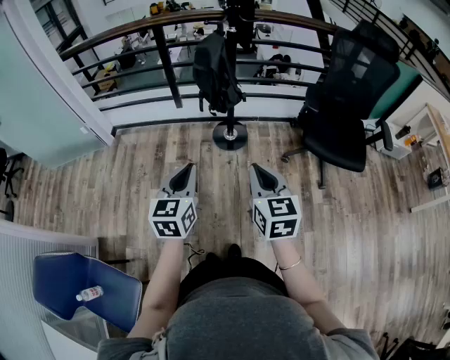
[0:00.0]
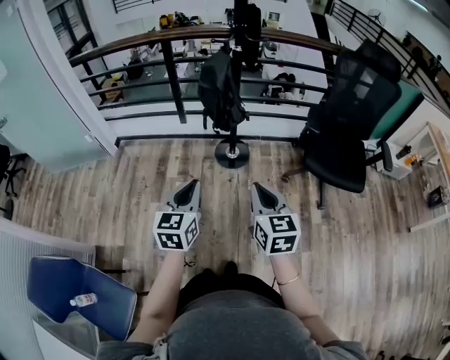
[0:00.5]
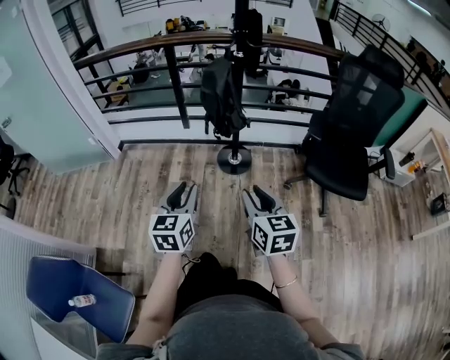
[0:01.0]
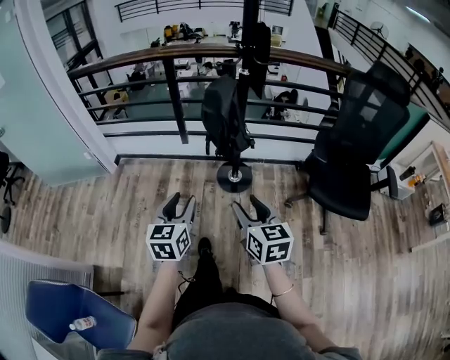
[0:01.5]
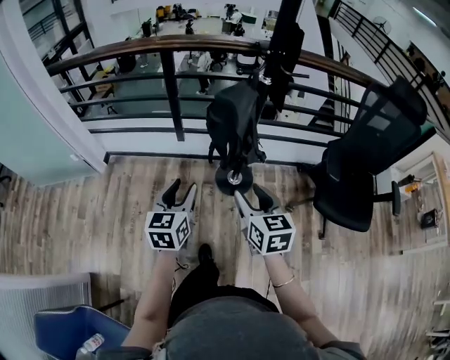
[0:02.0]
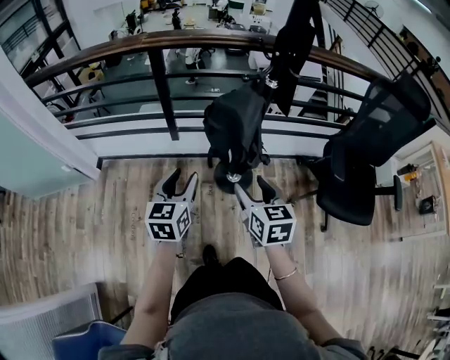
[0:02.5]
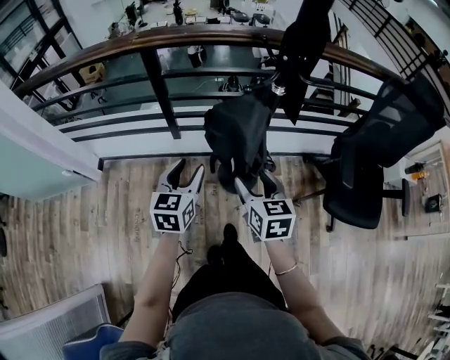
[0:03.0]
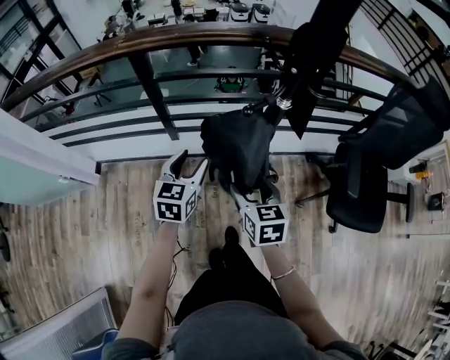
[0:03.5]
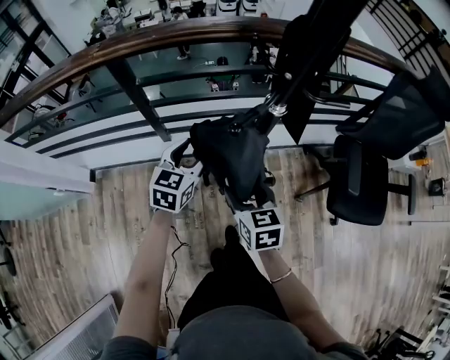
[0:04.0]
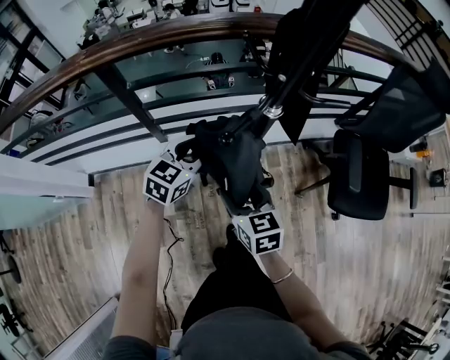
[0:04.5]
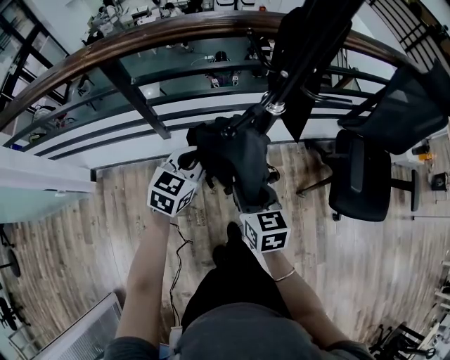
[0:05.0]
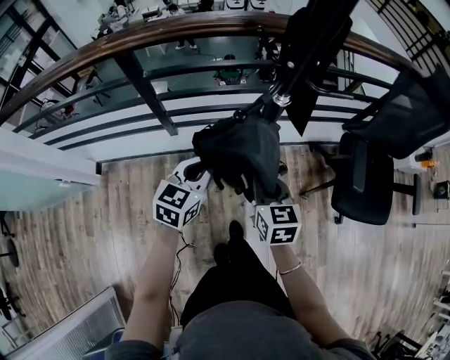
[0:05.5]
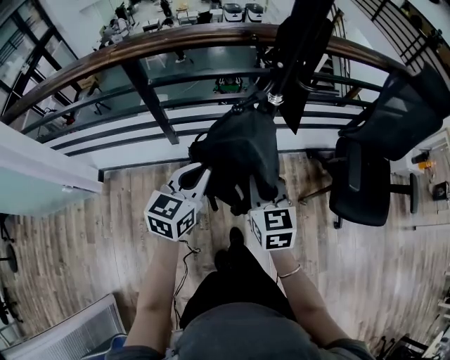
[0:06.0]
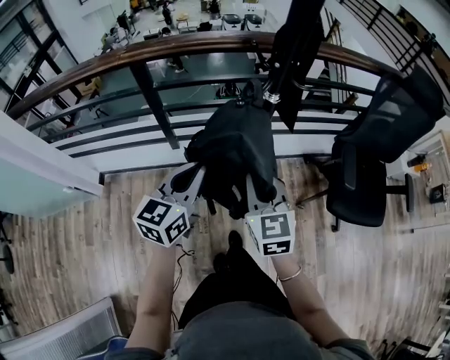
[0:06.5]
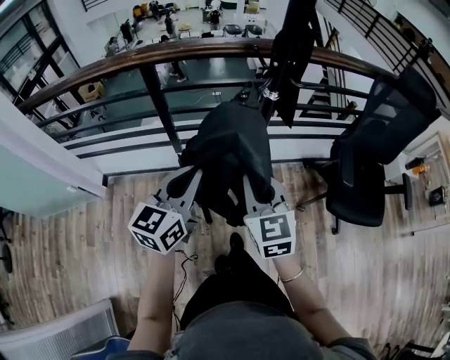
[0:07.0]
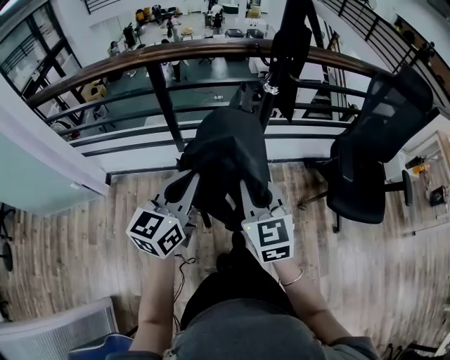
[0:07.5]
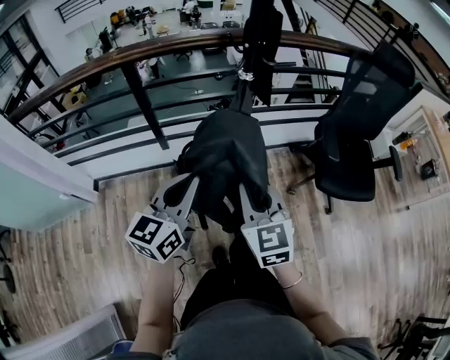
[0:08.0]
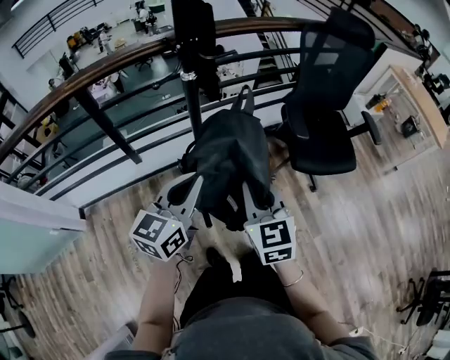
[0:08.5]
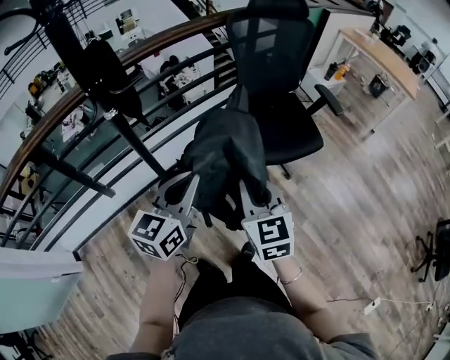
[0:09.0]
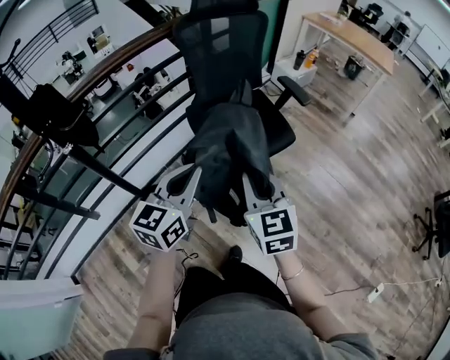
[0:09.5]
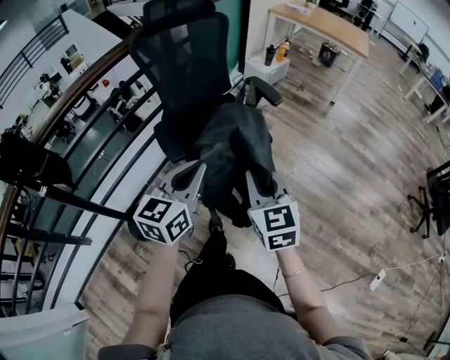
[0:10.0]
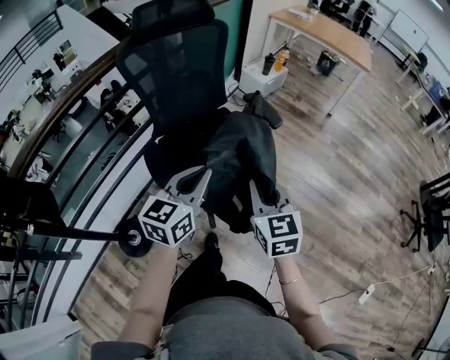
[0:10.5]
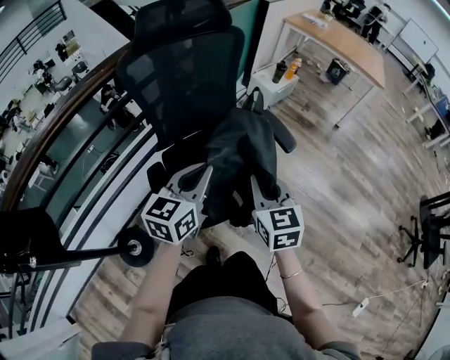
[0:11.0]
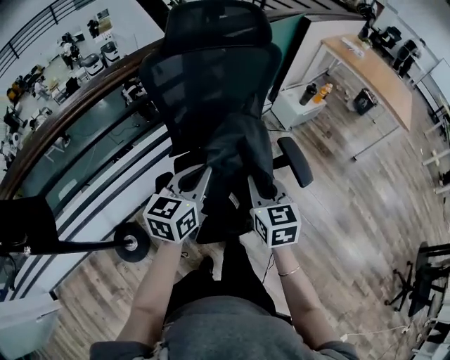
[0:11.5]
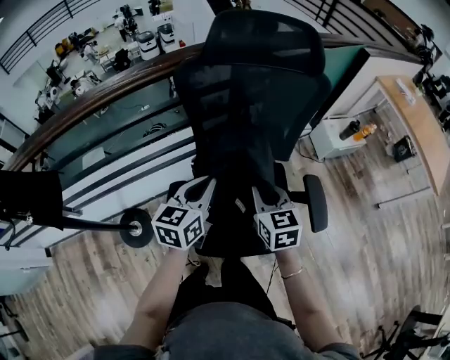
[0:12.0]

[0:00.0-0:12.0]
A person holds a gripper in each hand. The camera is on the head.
0:00.0 to 0:02.0: Both grippers move forward, roughly 30 cm. The right gripper opens up. Meanwhile the left gripper opens its fingers.
0:02.0 to 0:04.0: The grippers both shift forward by approximately 30 cm. The left gripper changes its angle by roughly 30 degrees.
0:04.0 to 0:06.0: The right gripper heads upward, covering roughly 5 cm, and closes its fingers. Meanwhile the left gripper travels backward and upward by about 10 cm, and closes its fingers.
0:06.0 to 0:08.0: The two grippers go some 20 cm backward and upward.
0:08.0 to 0:10.0: Both grippers are carried about 60 cm. The right gripper changes its angle by some 50 degrees. The left gripper turns by roughly 40 degrees.
0:10.0 to 0:12.0: The pair of grippers is taken roughly 40 cm. The right gripper swivels some 30 degrees, while the left gripper changes its angle by about 30 degrees.

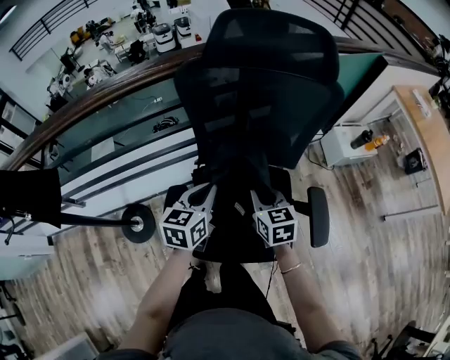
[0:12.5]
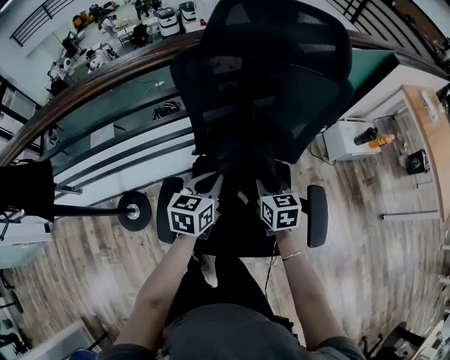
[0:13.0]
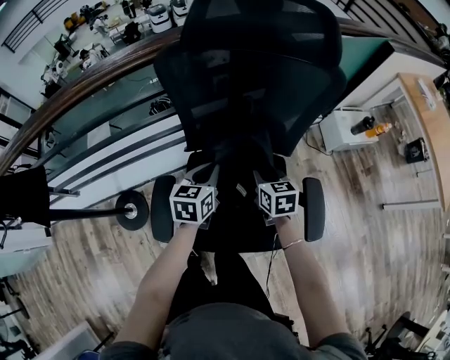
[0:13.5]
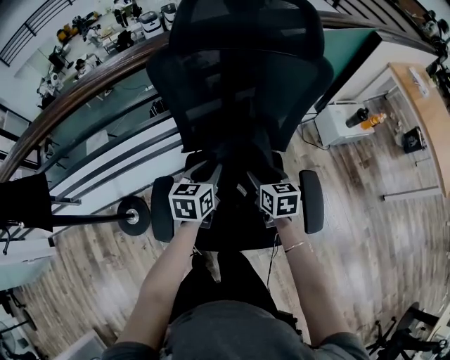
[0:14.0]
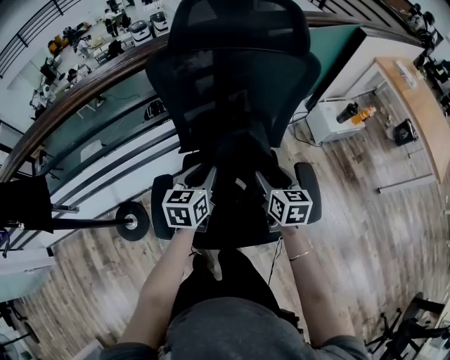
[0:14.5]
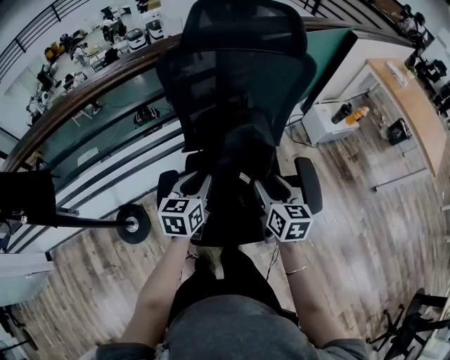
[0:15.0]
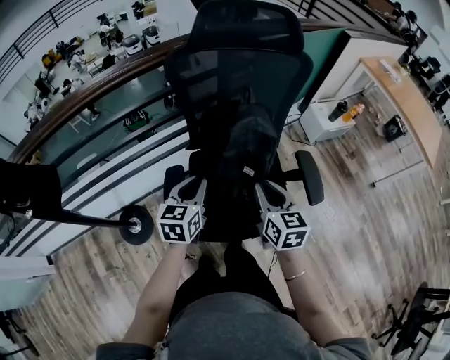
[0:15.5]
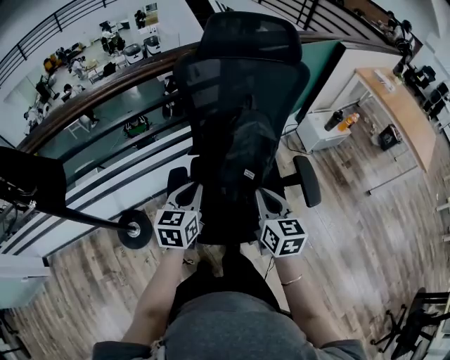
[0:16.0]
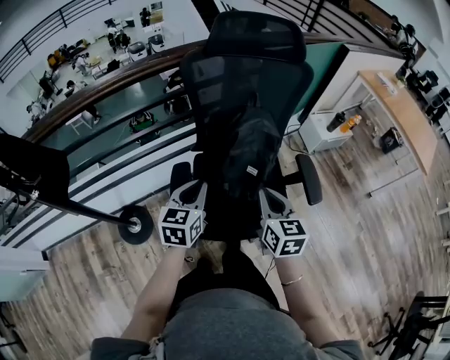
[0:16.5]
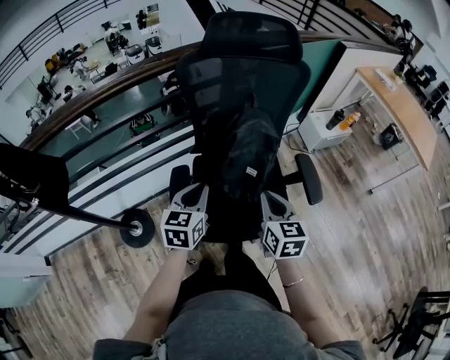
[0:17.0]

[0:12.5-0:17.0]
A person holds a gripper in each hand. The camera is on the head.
0:12.5 to 0:14.5: The right gripper is displaced to the right by some 10 cm, and opens its fingers.
0:14.5 to 0:17.0: The right gripper goes some 20 cm backward and upward, and closes, while the left gripper goes approximately 15 cm backward and to the left.

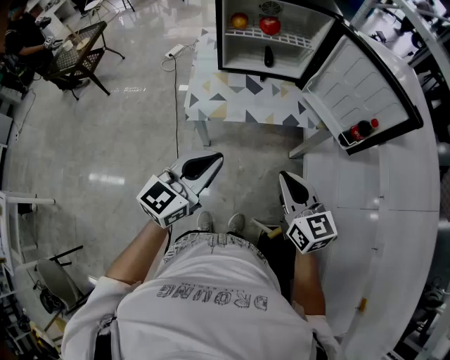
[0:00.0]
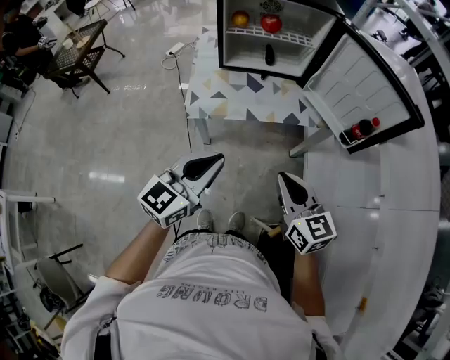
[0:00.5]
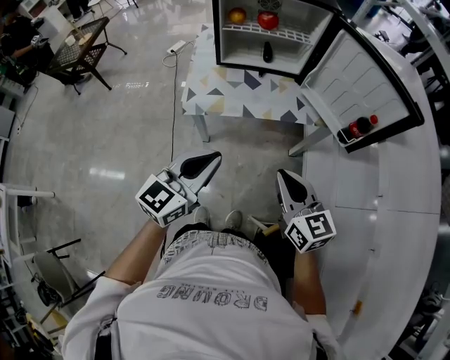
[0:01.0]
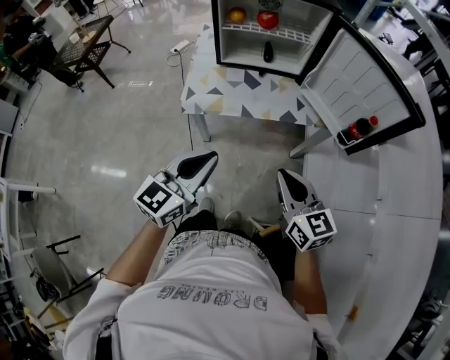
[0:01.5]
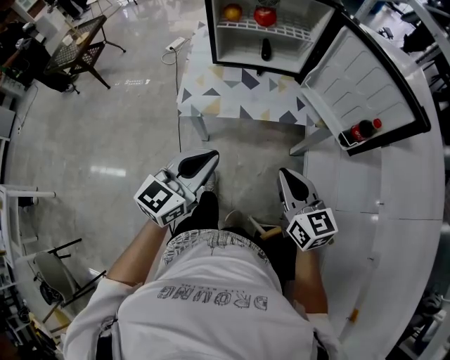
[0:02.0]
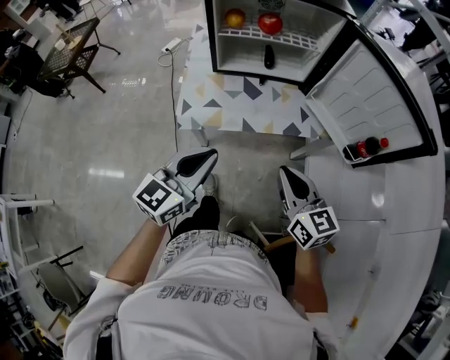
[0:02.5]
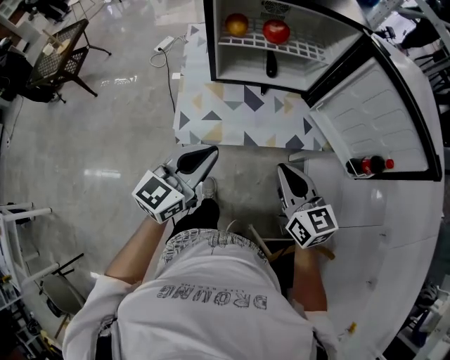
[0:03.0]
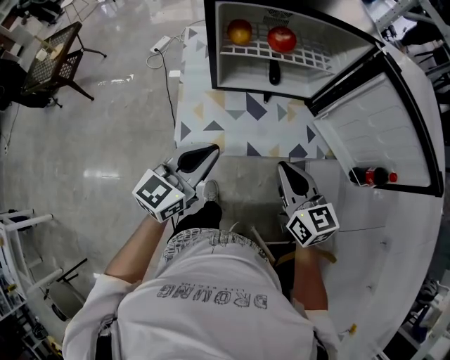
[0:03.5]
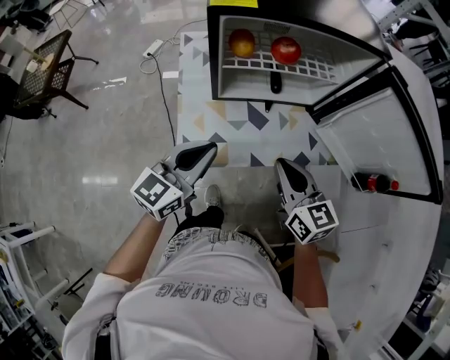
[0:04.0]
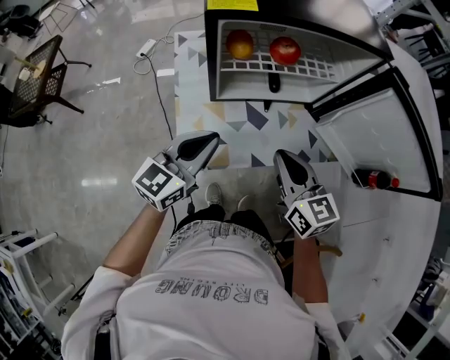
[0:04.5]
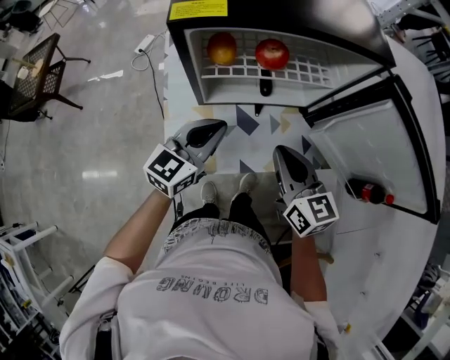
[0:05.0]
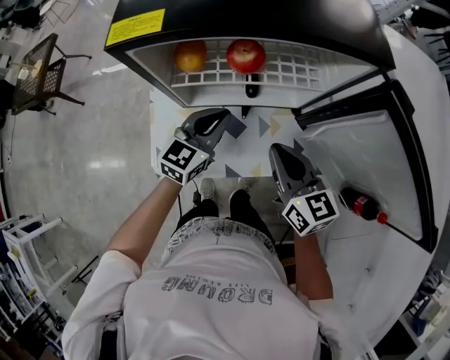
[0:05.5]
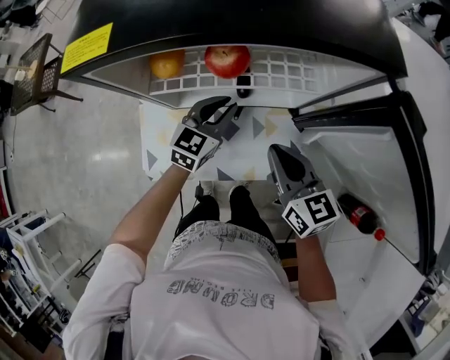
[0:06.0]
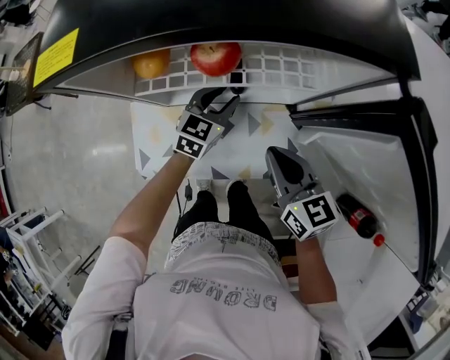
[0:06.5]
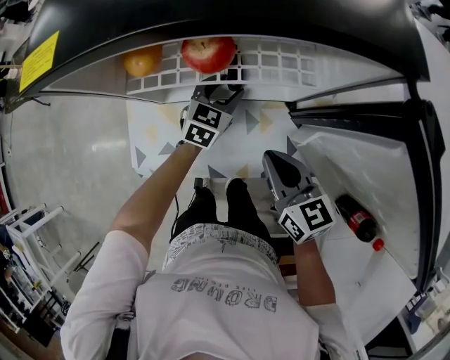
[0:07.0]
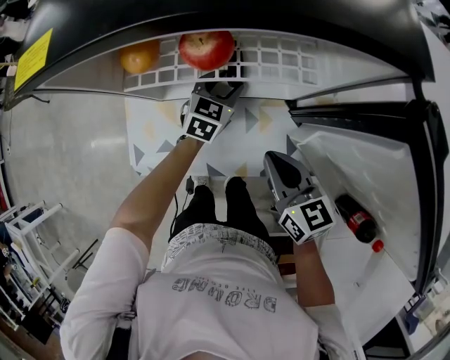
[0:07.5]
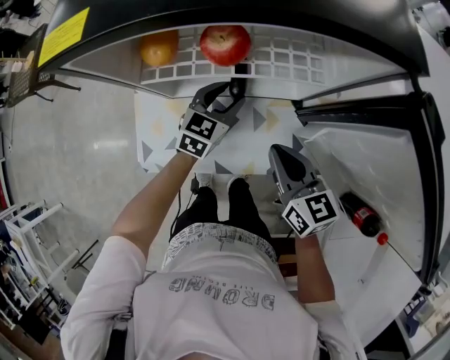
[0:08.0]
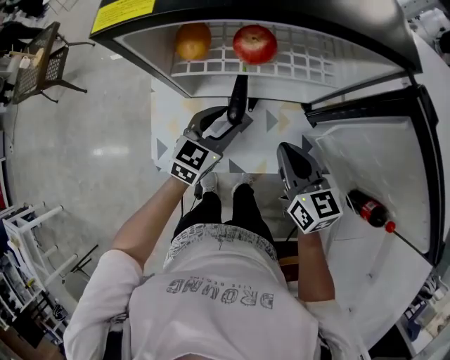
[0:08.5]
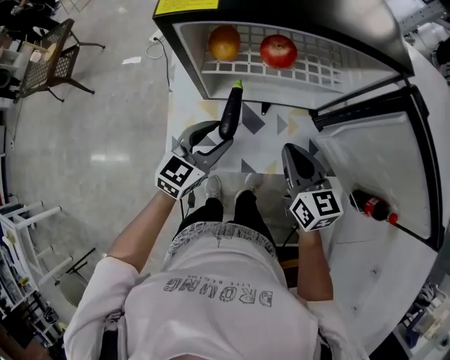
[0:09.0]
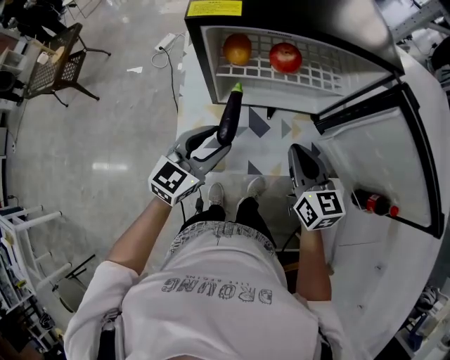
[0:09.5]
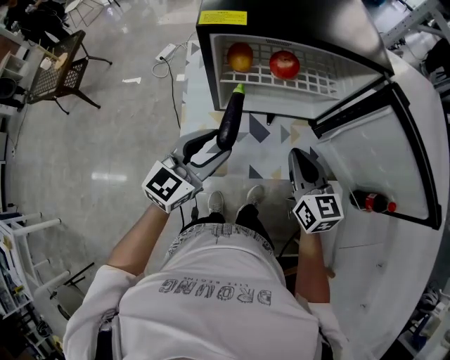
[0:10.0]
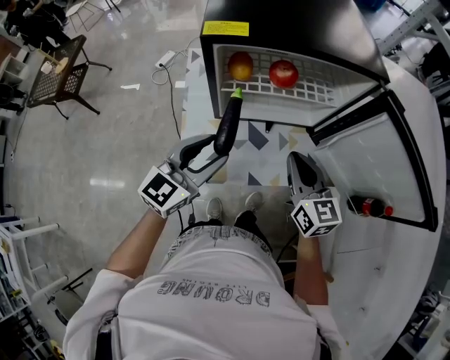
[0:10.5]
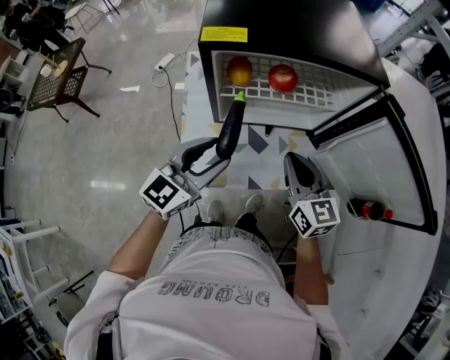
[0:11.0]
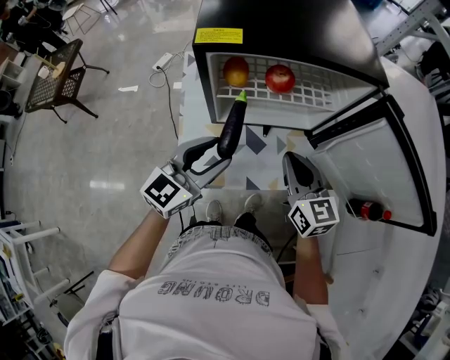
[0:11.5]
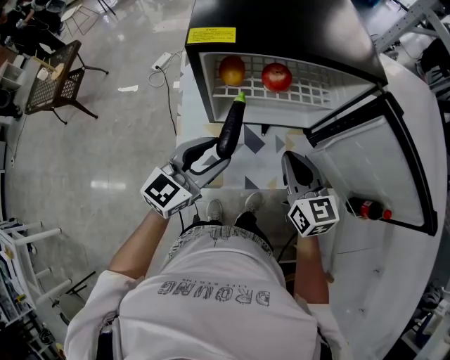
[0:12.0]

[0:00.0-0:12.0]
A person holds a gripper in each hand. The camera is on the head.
0:00.0 to 0:02.0: The right gripper shifts by about 5 cm.
0:02.0 to 0:04.0: The grippers both shift forward and to the left by roughly 25 cm.
0:04.0 to 0:06.0: The right gripper goes about 20 cm forward and to the right. Meanwhile the left gripper travels forward, to the right and downward by roughly 30 cm.
0:06.0 to 0:08.0: The left gripper opens its fingers.
0:08.0 to 0:10.0: The left gripper is displaced backward, upward and to the left by about 30 cm, and turns by approximately 20 degrees. The right gripper is displaced upward, to the left and backward by some 10 cm.
0:10.0 to 0:12.0: There are only small adjustments of the grippers.
